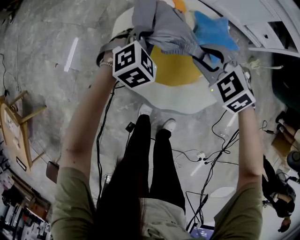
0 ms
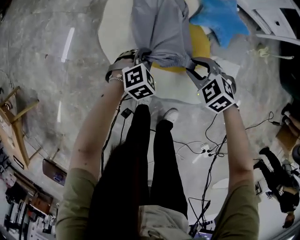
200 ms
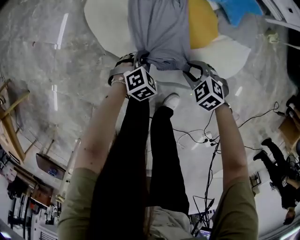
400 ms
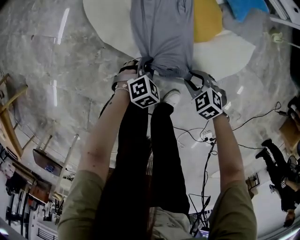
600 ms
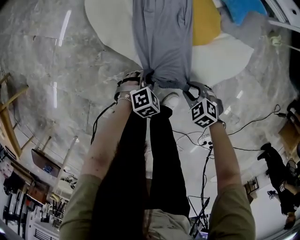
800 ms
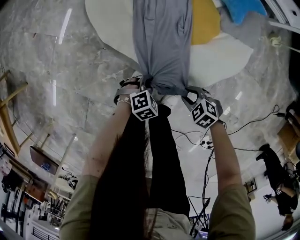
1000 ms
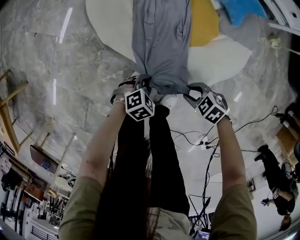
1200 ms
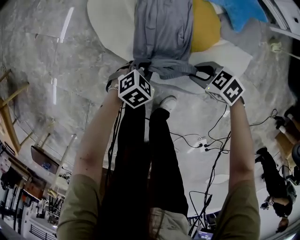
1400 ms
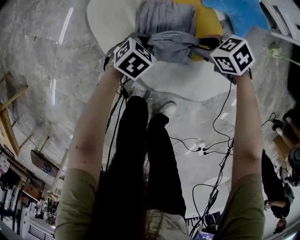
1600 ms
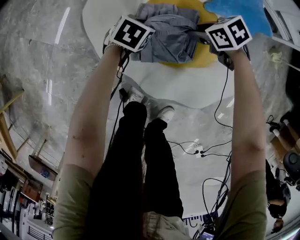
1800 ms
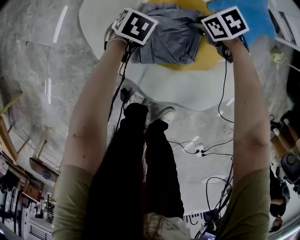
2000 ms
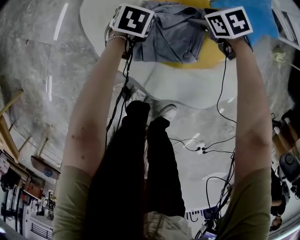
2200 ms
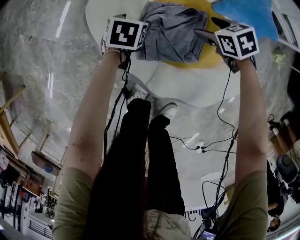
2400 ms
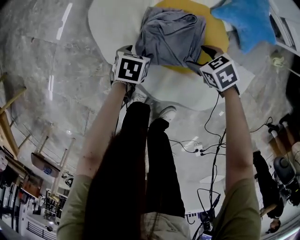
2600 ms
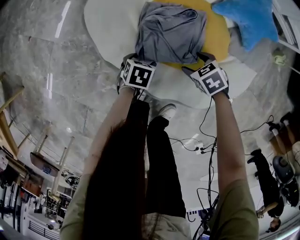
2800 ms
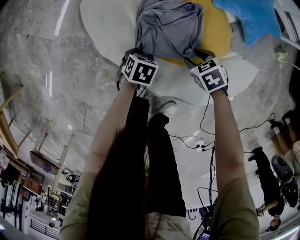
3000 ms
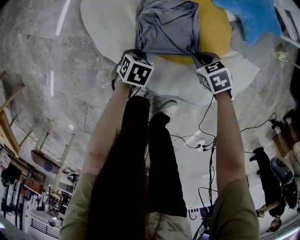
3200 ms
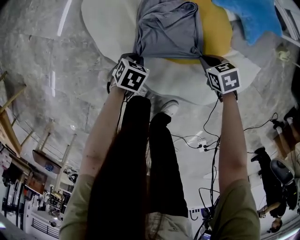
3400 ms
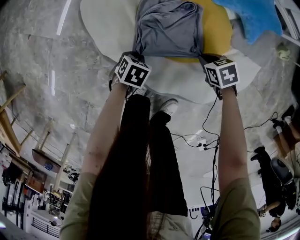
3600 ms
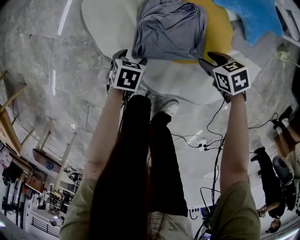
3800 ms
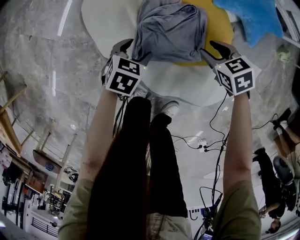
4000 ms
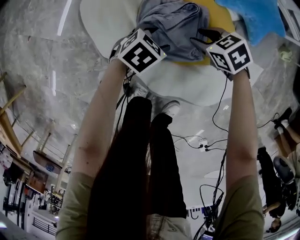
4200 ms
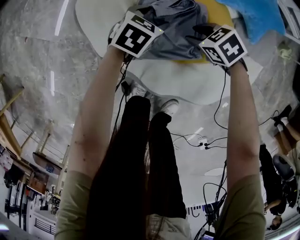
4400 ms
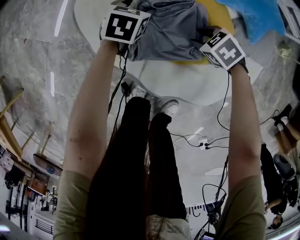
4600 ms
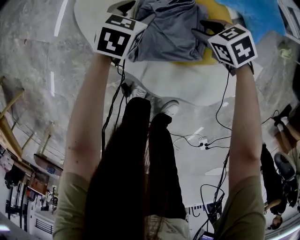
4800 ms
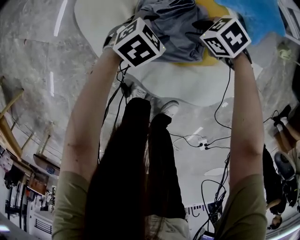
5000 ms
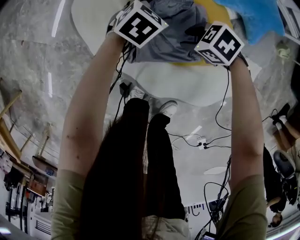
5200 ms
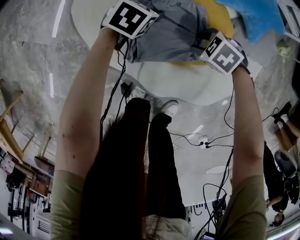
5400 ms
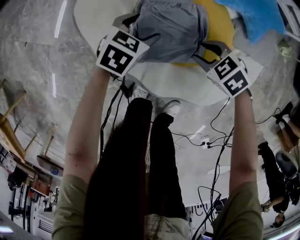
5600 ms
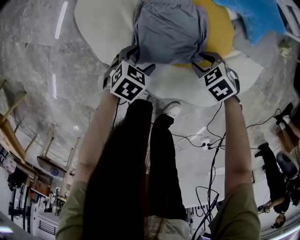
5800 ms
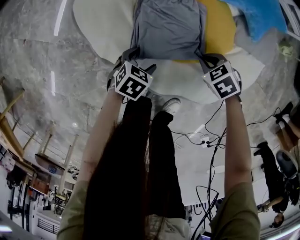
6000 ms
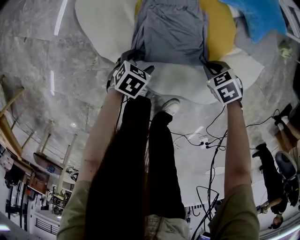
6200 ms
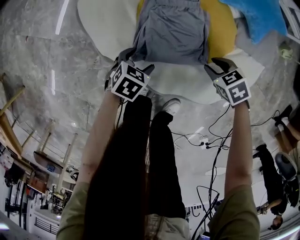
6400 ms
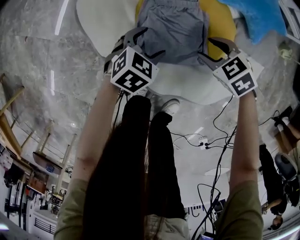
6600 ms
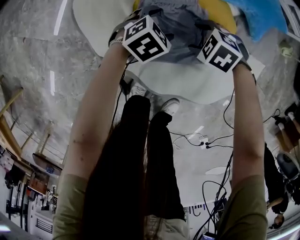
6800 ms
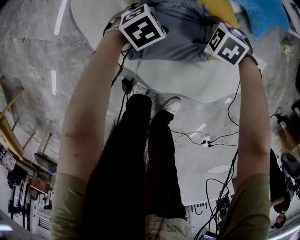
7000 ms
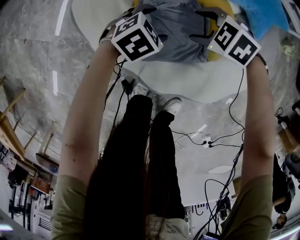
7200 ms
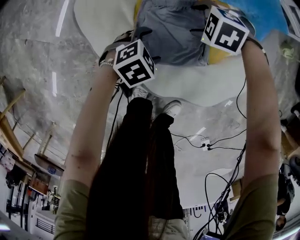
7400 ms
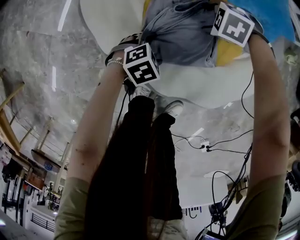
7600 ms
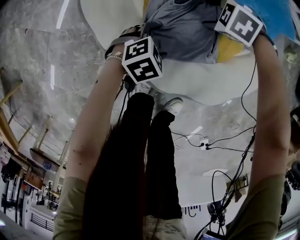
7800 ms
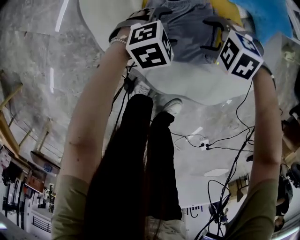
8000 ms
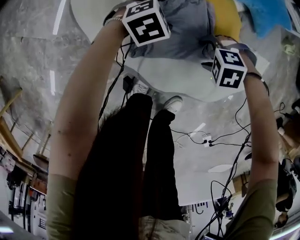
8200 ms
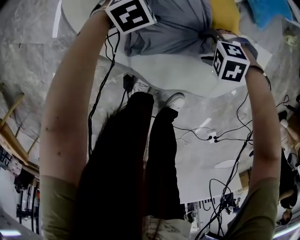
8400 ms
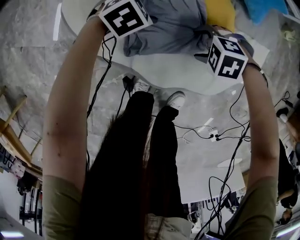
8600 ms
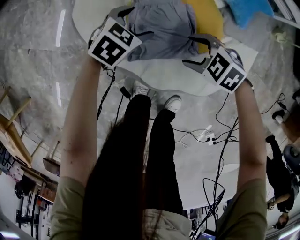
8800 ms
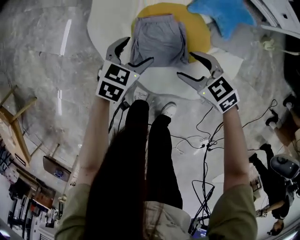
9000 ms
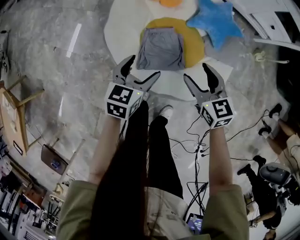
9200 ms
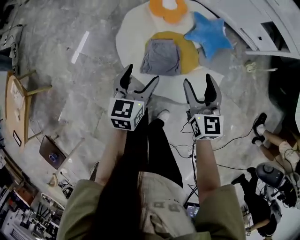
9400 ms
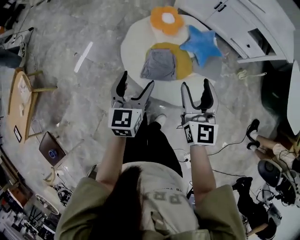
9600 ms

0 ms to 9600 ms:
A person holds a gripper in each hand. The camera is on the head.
0 ms to 1600 ms: The grippers both shift downward by approximately 30 cm. The right gripper swivels some 40 degrees, while the left gripper rotates about 30 degrees.
1600 ms to 3200 ms: The two grippers go approximately 10 cm downward. The right gripper opens, then closes once more. The left gripper changes its angle by roughly 30 degrees, and opens, then closes once more.
3200 ms to 4800 ms: The right gripper moves roughly 10 cm, and opens its fingers, while the left gripper changes place by about 20 cm, rotates approximately 20 degrees, and opens up.
4800 ms to 6400 ms: The left gripper changes place by some 20 cm. Meanwhile the right gripper shifts by approximately 15 cm.
6400 ms to 8000 ms: The right gripper moves roughly 10 cm, rotates around the line of its fingers by roughly 50 degrees, counterclockwise from behind, and opens its fingers; the left gripper swings up and down, roughly 5 cm each way, with 2 reversals, and turns by roughly 40 degrees.
8000 ms to 9600 ms: The two grippers go approximately 60 cm upward. The right gripper tips its fingers upward by about 60 degrees. Meanwhile the left gripper points its fingers some 30 degrees further upward.

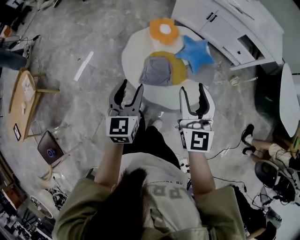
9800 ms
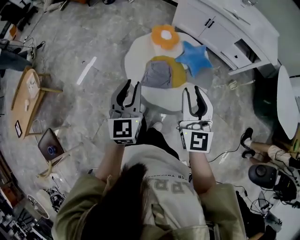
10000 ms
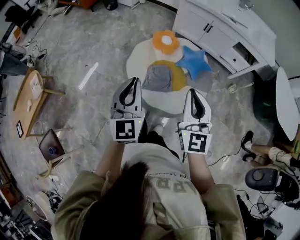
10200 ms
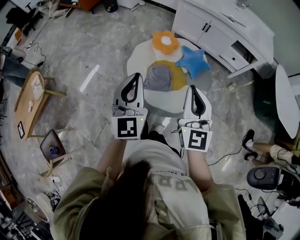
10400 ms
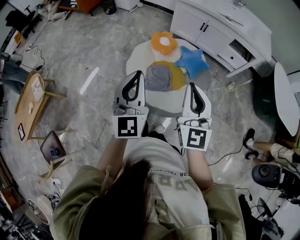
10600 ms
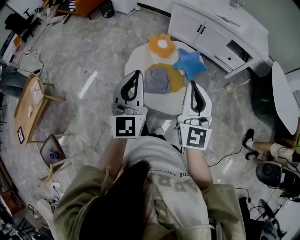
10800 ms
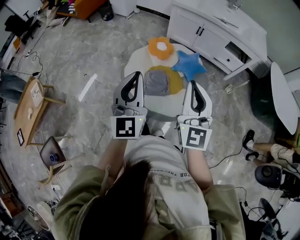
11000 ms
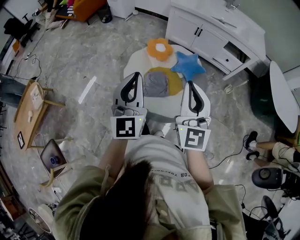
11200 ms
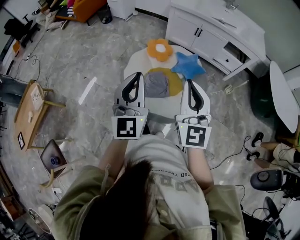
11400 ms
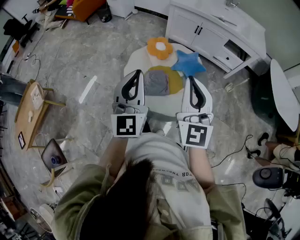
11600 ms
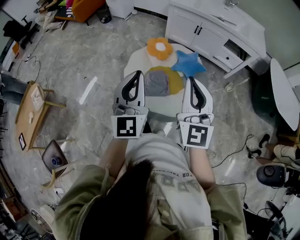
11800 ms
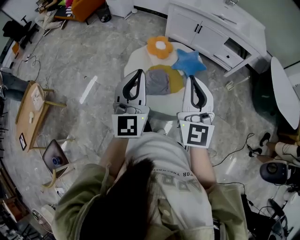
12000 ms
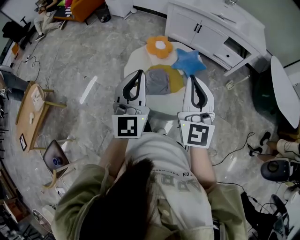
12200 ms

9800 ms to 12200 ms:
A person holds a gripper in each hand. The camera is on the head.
9800 ms to 11000 ms: The left gripper heads upward, covering about 20 cm, turns by approximately 30 degrees, and closes up, while the right gripper moves upward and backward, about 15 cm, and closes its fingers.
11000 ms to 12200 ms: Both grippers stay put.

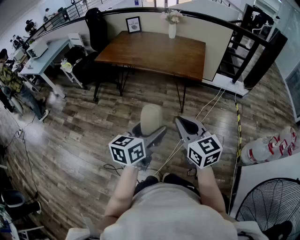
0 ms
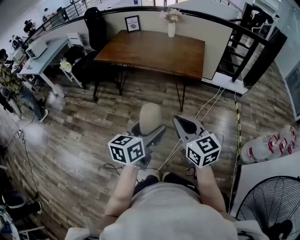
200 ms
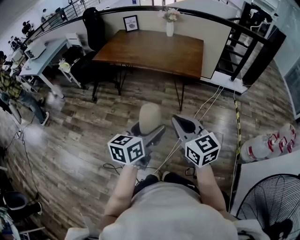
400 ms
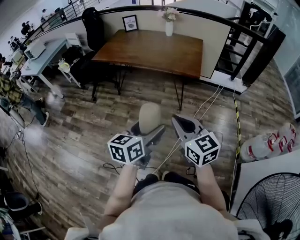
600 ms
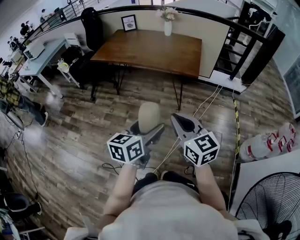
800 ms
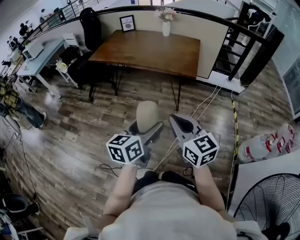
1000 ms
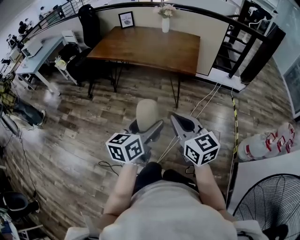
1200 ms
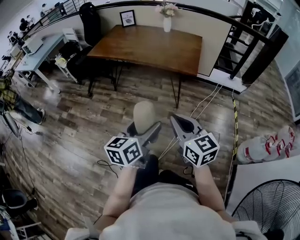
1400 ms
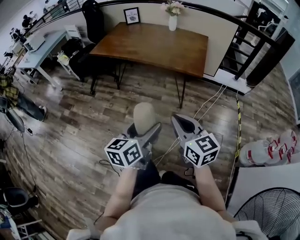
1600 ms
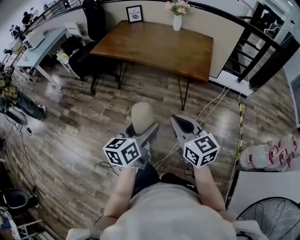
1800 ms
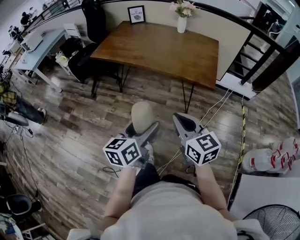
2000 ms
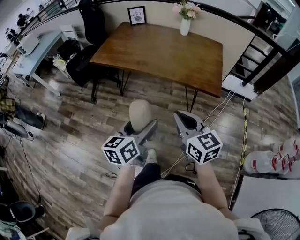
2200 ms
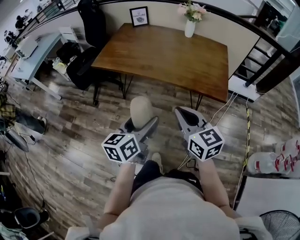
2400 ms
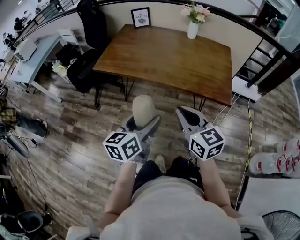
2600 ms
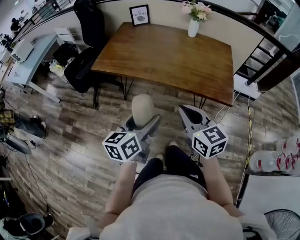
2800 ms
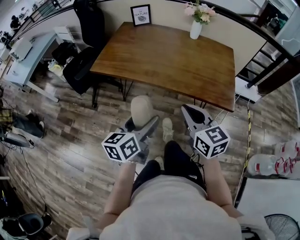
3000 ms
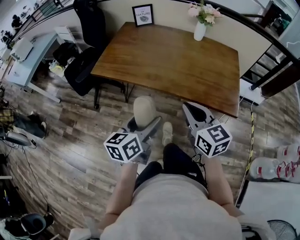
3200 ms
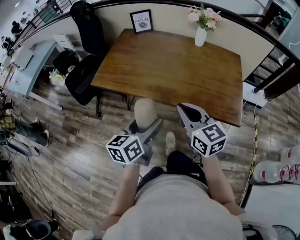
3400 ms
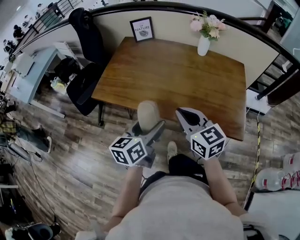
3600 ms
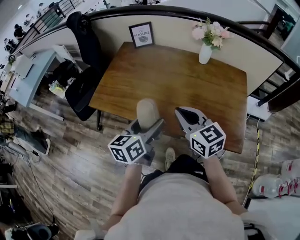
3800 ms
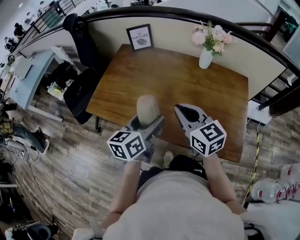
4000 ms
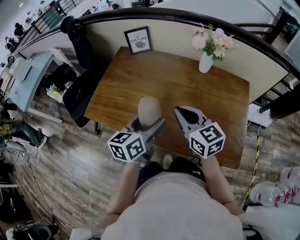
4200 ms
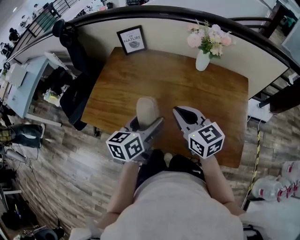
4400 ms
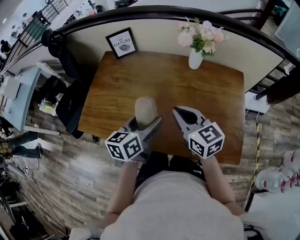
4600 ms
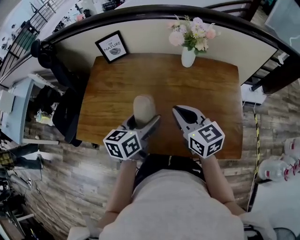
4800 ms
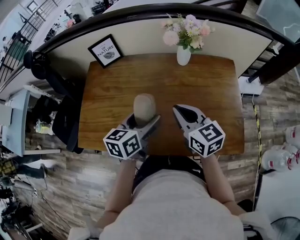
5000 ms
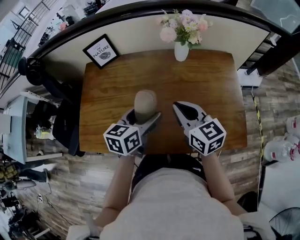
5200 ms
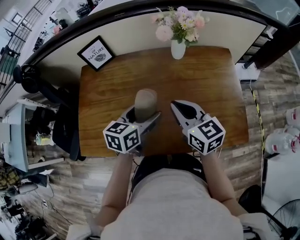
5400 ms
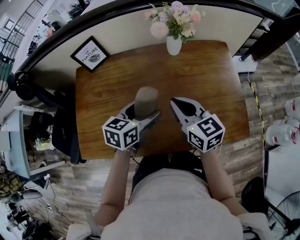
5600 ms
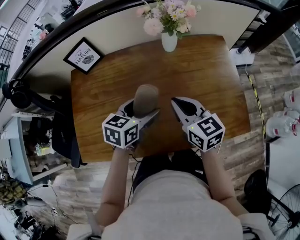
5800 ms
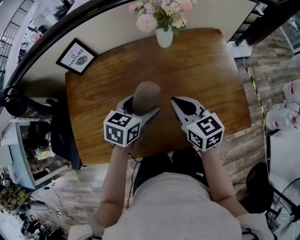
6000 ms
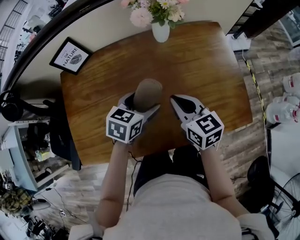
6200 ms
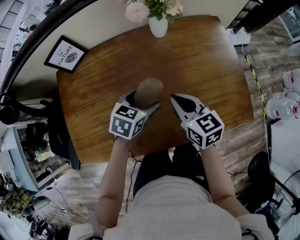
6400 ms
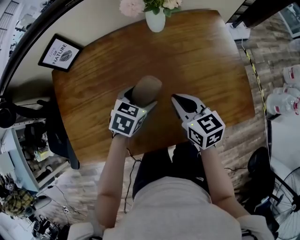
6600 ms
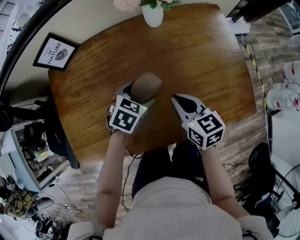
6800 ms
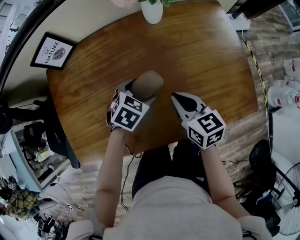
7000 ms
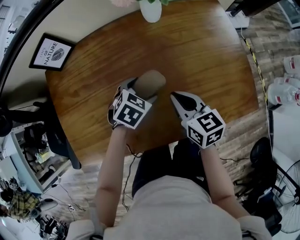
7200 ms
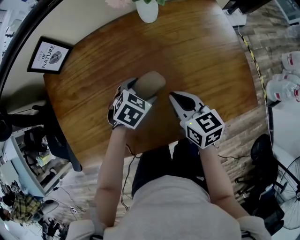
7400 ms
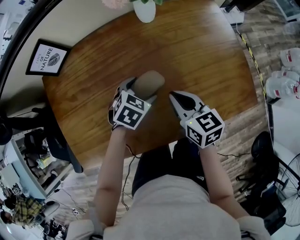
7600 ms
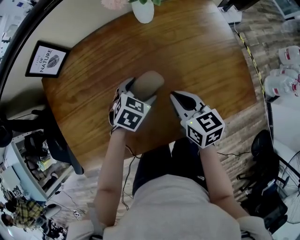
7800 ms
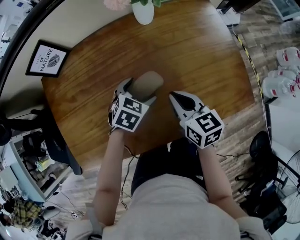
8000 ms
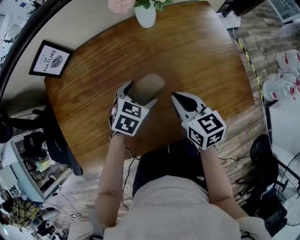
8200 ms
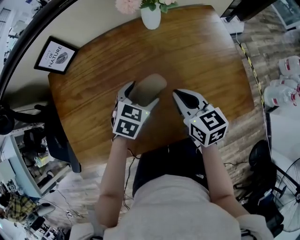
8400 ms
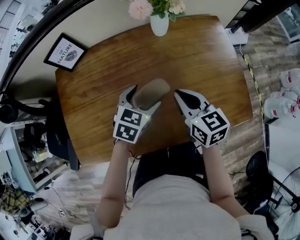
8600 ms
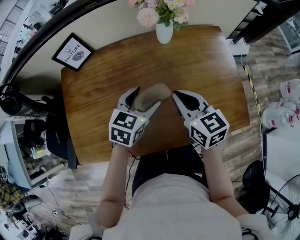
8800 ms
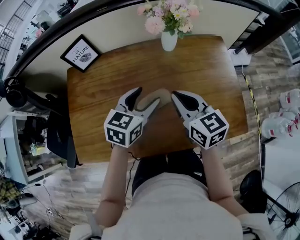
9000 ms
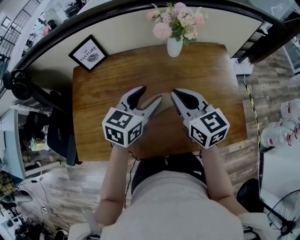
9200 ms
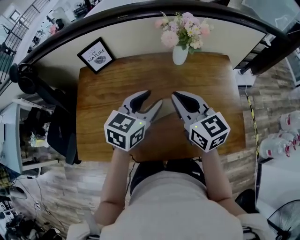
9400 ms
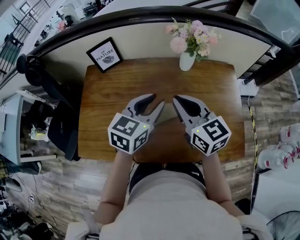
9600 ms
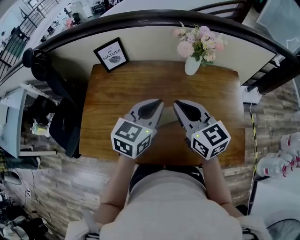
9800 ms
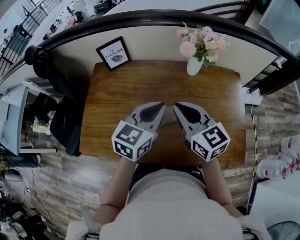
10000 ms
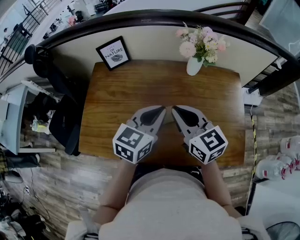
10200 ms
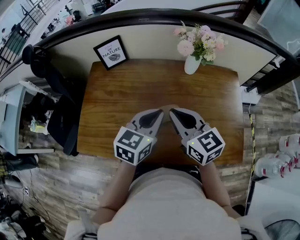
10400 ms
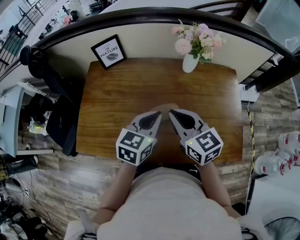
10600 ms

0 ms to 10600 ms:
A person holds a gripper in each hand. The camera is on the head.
0 ms to 1600 ms: The left gripper shifts by roughly 5 cm. Meanwhile the right gripper ends up some 5 cm from where it was.
1600 ms to 3000 ms: The left gripper goes roughly 40 cm forward and to the left. The right gripper heads forward, covering roughly 35 cm.
3000 ms to 4600 ms: The two grippers go roughly 35 cm forward.
4600 ms to 6000 ms: The left gripper moves some 10 cm, and changes its angle by roughly 50 degrees, while the right gripper heads downward, covering approximately 5 cm, and rotates approximately 30 degrees.
6000 ms to 7600 ms: The left gripper heads downward, covering roughly 15 cm, and swivels approximately 30 degrees. The right gripper goes roughly 10 cm downward.
7600 ms to 9000 ms: Both grippers travel together upward, some 15 cm. The left gripper tilts its fingers about 30 degrees upward.
9000 ms to 10600 ms: The left gripper moves backward, some 5 cm, and closes up. Meanwhile the right gripper shifts roughly 5 cm to the left.

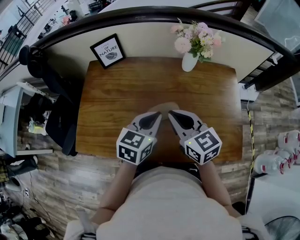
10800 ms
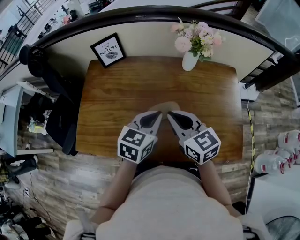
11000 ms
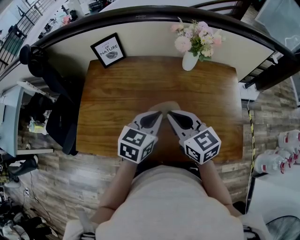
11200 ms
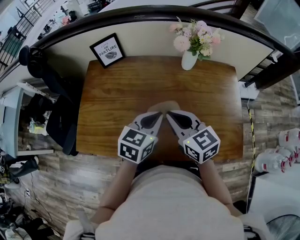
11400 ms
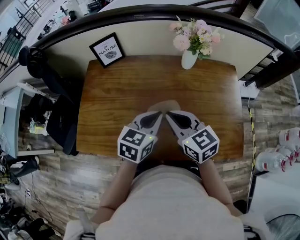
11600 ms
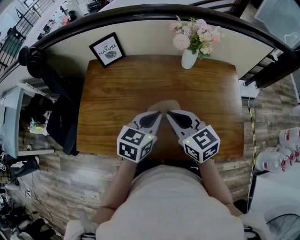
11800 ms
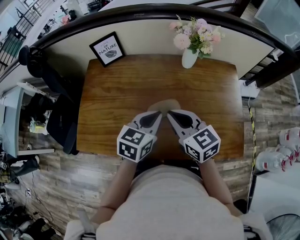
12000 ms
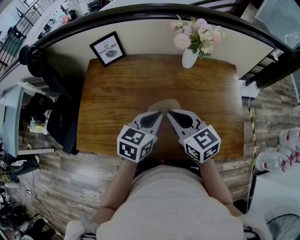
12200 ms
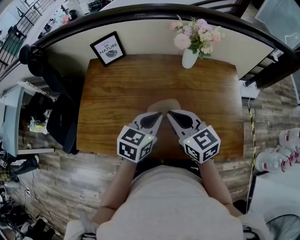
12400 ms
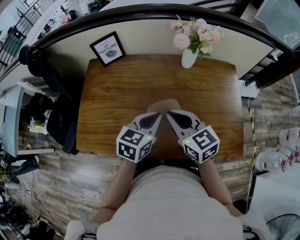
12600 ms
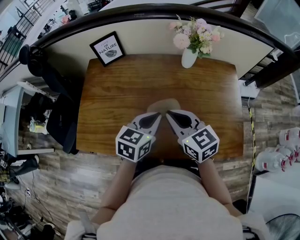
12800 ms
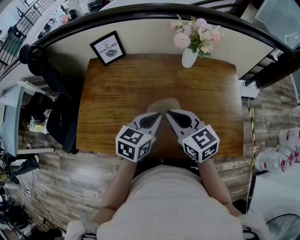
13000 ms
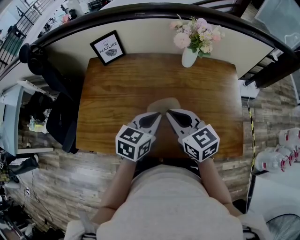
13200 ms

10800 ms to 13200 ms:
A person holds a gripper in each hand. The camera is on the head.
10800 ms to 12000 ms: The grippers make only small movements.
12000 ms to 13200 ms: Both grippers stay put.
